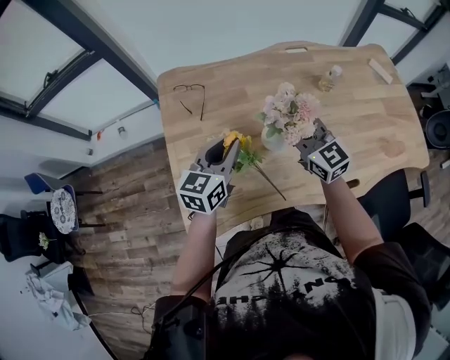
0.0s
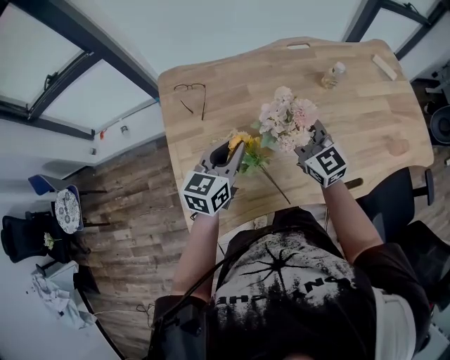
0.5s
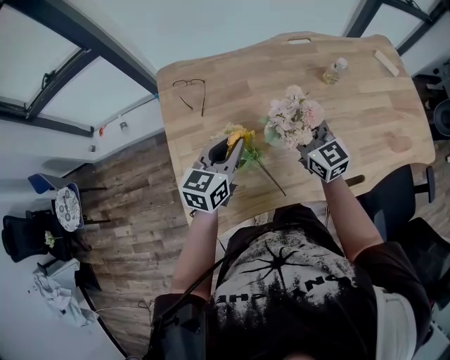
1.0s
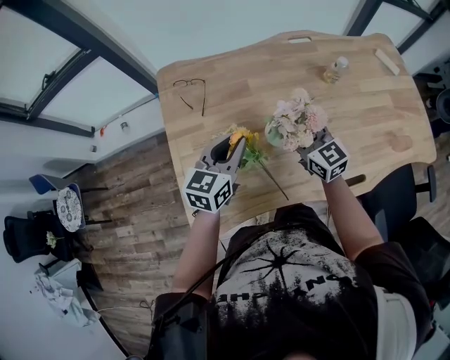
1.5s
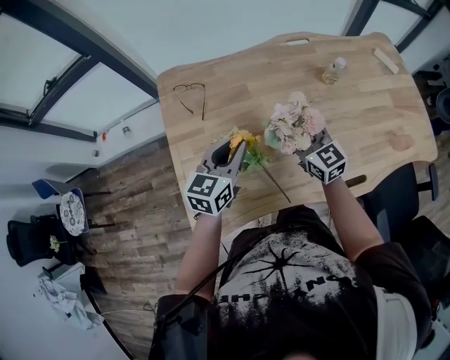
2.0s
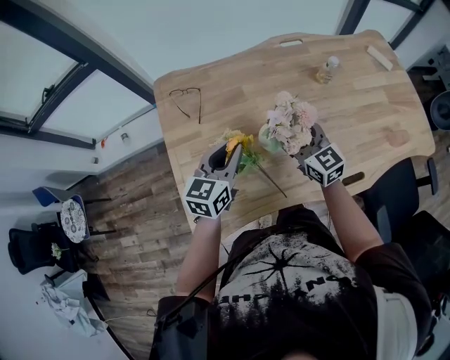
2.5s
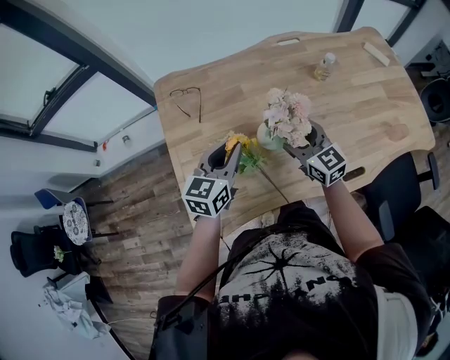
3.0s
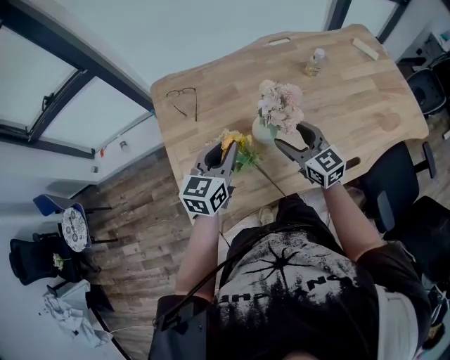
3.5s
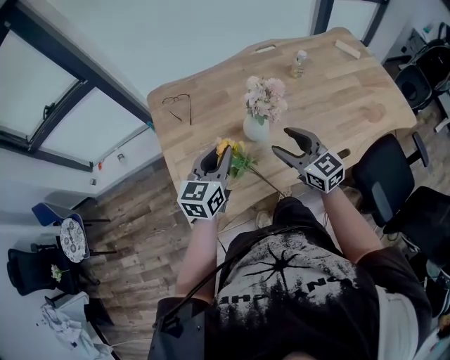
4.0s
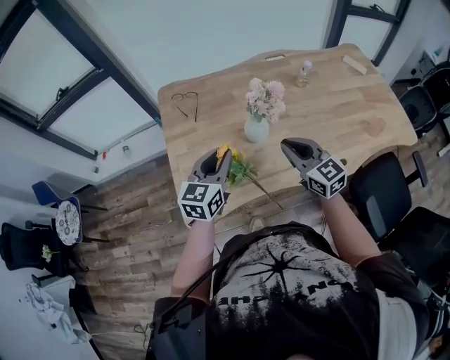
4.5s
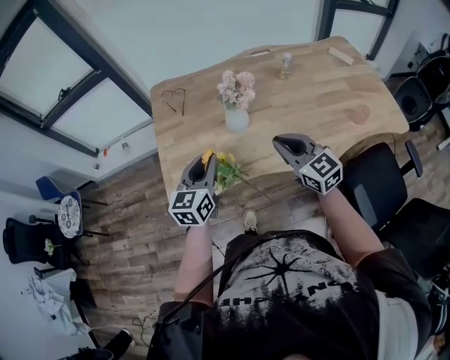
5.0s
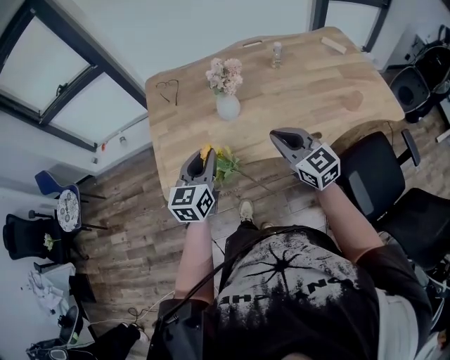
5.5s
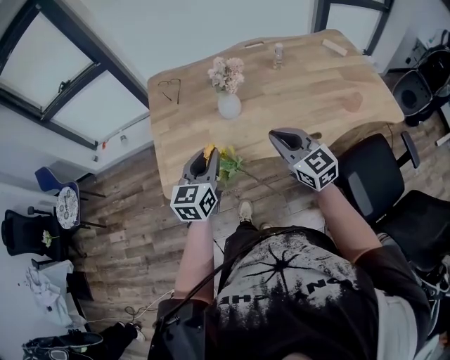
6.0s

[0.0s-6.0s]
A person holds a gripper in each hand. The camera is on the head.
0.0s to 2.0s: The right gripper is displaced downward by roughly 5 cm, and opens up.
2.0s to 4.0s: The right gripper is displaced backward by approximately 15 cm. Meanwhile the left gripper goes approximately 10 cm backward.
4.0s to 6.0s: The right gripper travels backward and to the right by some 15 cm, and closes its fingers. The left gripper shifts some 15 cm backward.

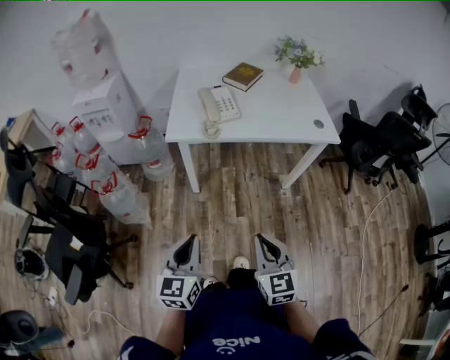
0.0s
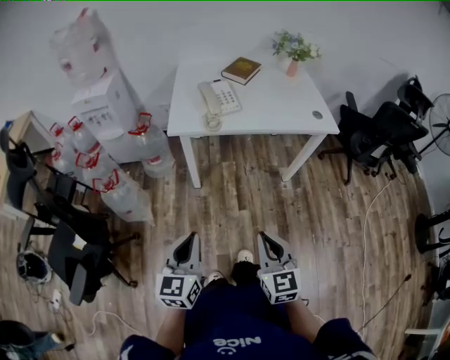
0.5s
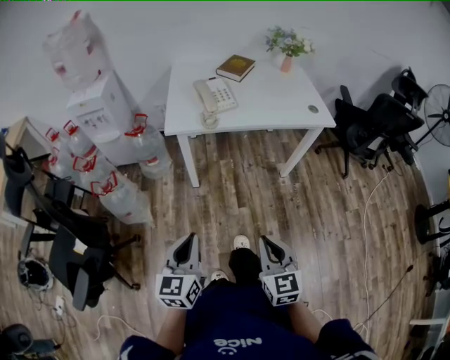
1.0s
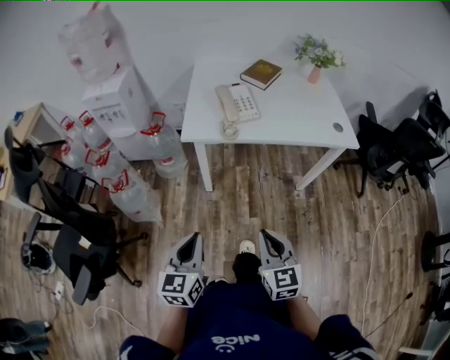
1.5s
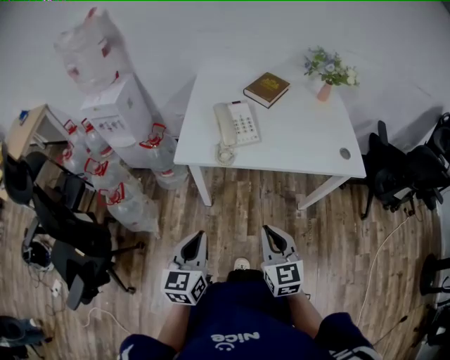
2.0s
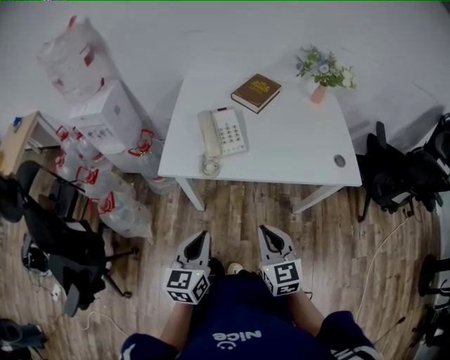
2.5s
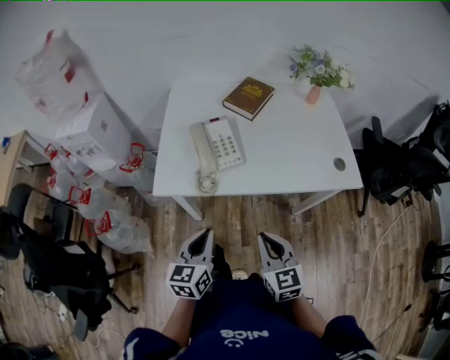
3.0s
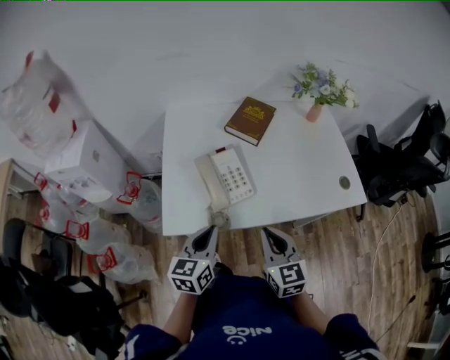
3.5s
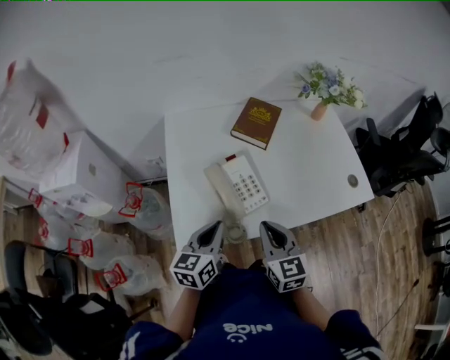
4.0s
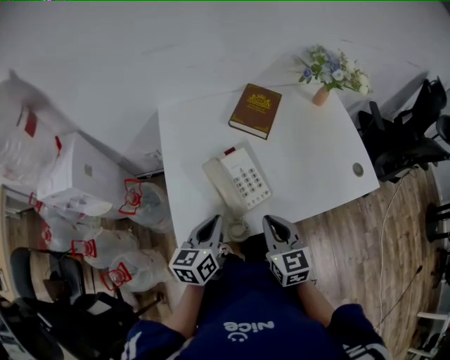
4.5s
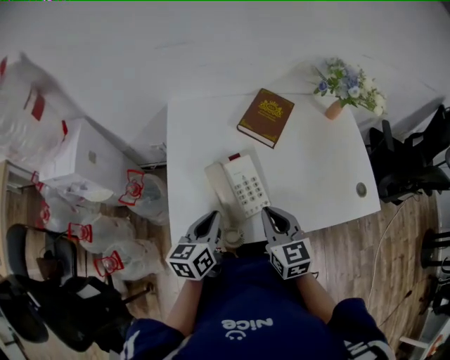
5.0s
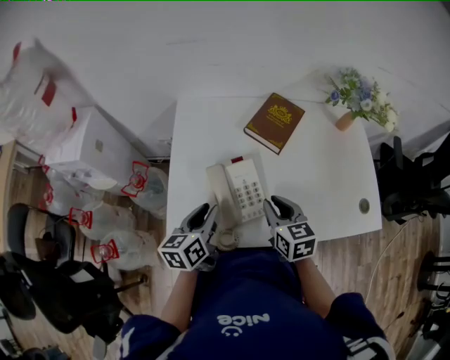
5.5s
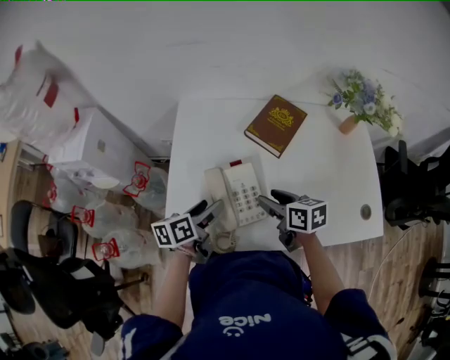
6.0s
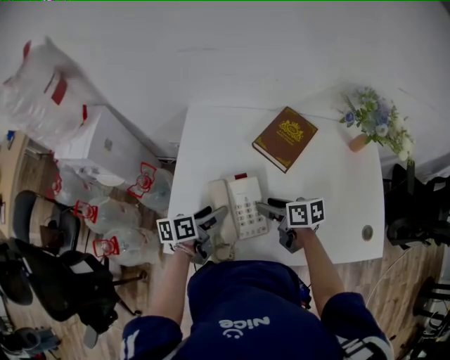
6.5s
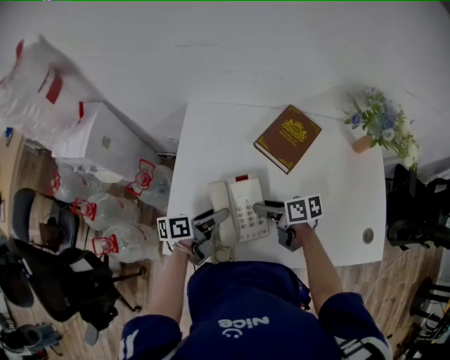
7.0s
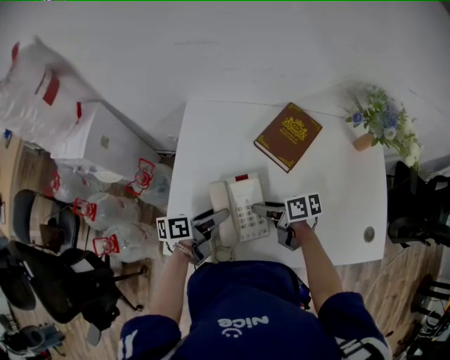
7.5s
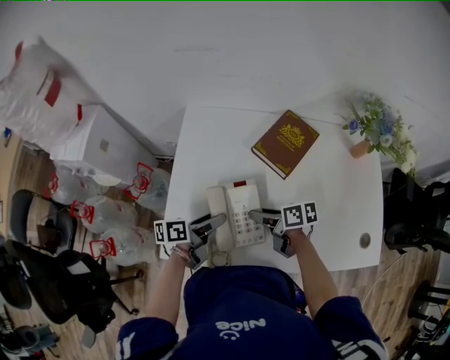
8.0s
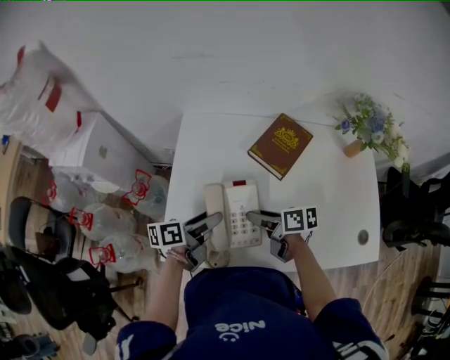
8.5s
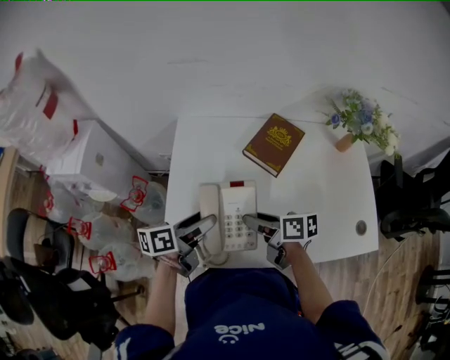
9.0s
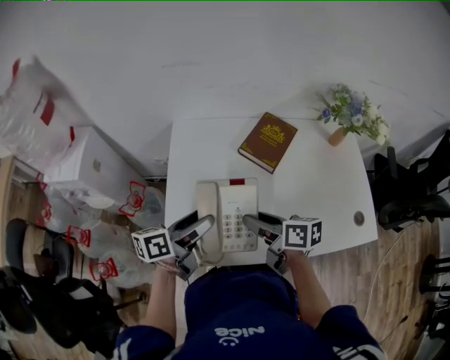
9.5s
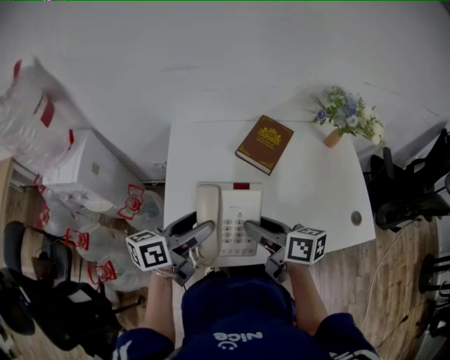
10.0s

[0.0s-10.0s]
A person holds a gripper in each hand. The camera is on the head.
0.0s to 2.0s: Both grippers move forward, approximately 20 cm.
2.0s to 4.0s: Both grippers move forward, roughly 35 cm. The left gripper turns by approximately 30 degrees.
4.0s to 6.0s: Both grippers move forward and downward, roughly 15 cm. The left gripper swivels about 30 degrees, and opens its fingers. Meanwhile the right gripper rotates about 40 degrees, and opens up.
6.0s to 8.0s: The left gripper moves roughly 5 cm; the right gripper moves downward, approximately 5 cm, and swivels about 30 degrees.
8.0s to 10.0s: The left gripper goes about 15 cm upward, and changes its angle by some 30 degrees, while the right gripper goes some 15 cm upward and backward, and turns by roughly 30 degrees.

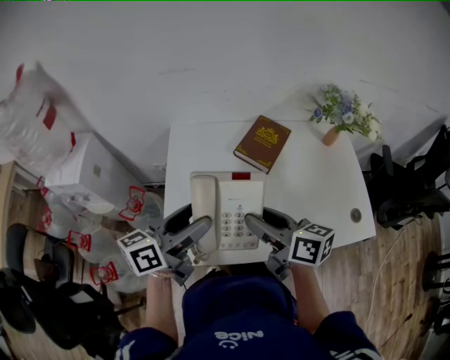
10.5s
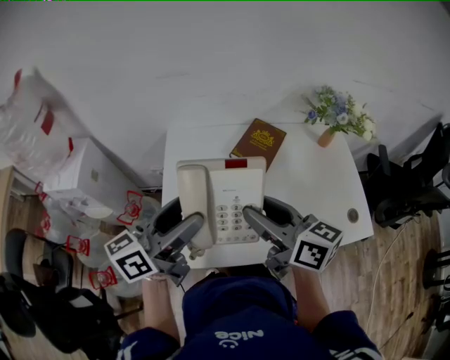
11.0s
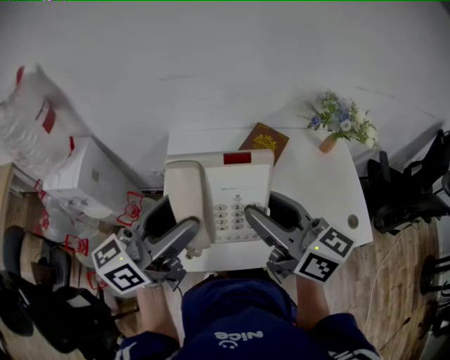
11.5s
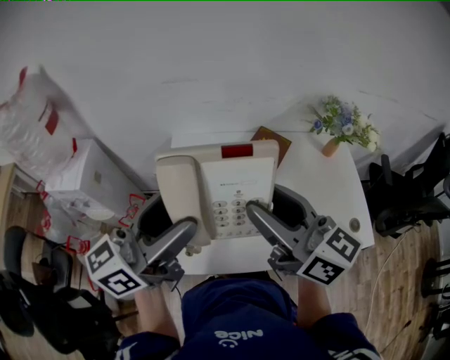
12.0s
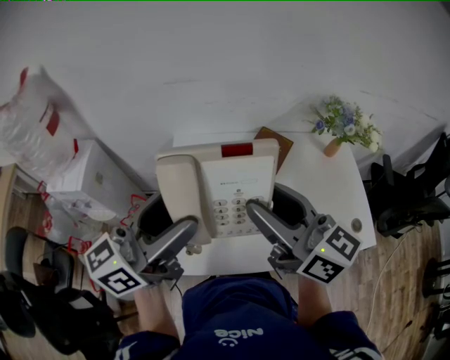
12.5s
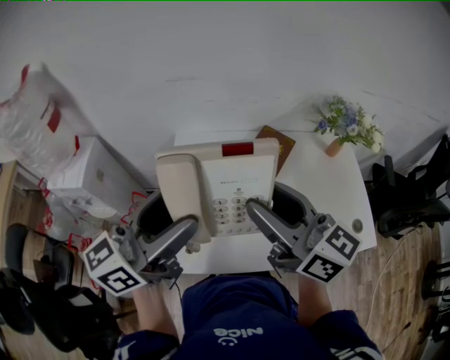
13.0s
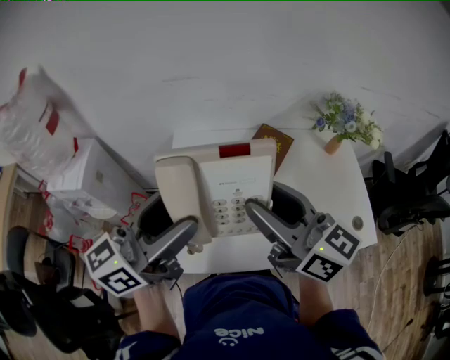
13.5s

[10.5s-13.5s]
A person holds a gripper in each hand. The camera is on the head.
10.5s to 12.0s: Both grippers move upward, about 15 cm. The left gripper rotates approximately 20 degrees. The right gripper rotates roughly 30 degrees.
12.0s to 13.5s: The two grippers keep their place.

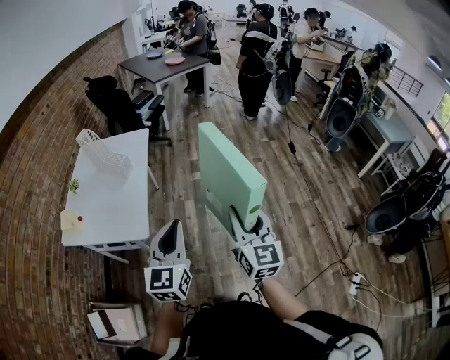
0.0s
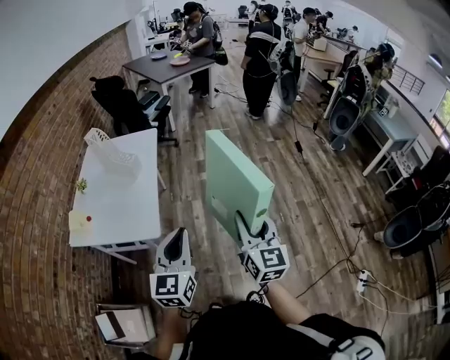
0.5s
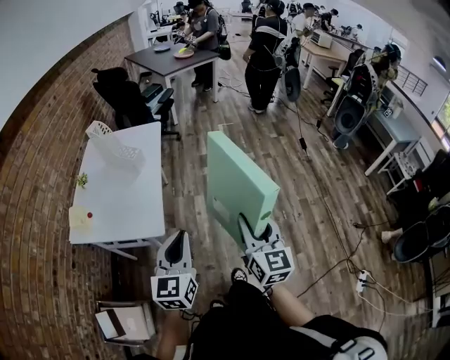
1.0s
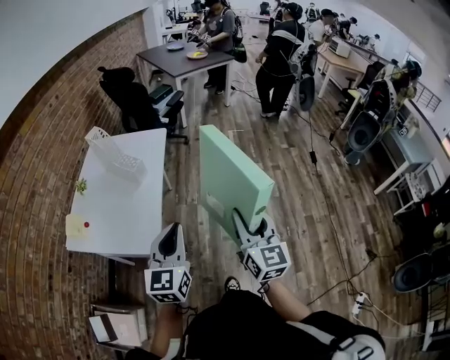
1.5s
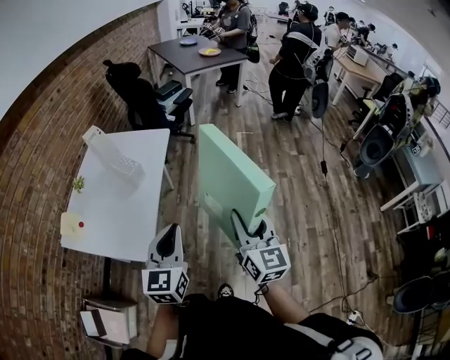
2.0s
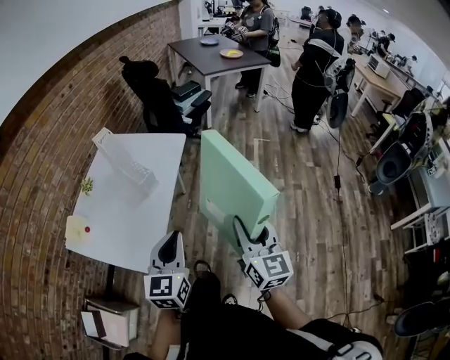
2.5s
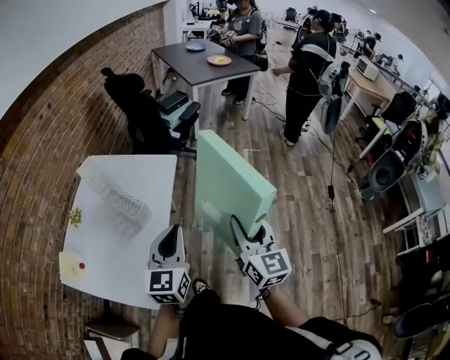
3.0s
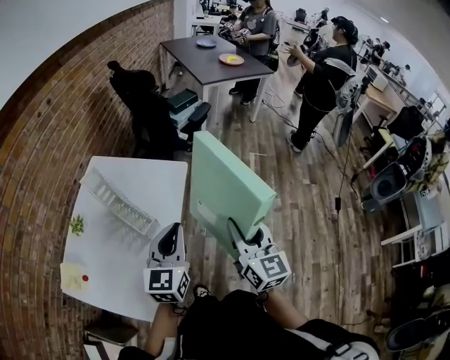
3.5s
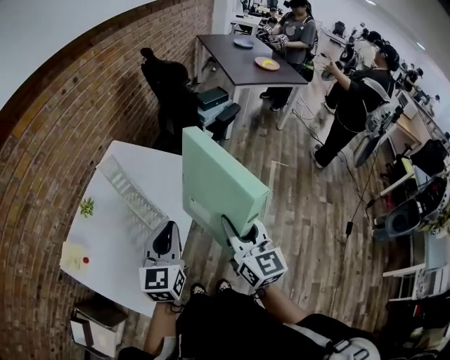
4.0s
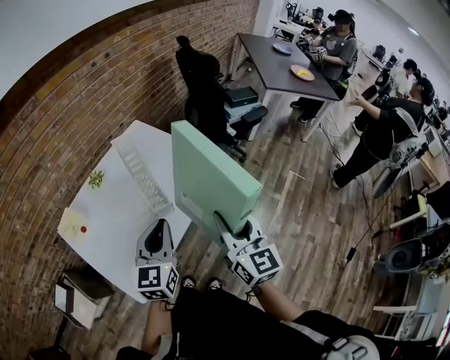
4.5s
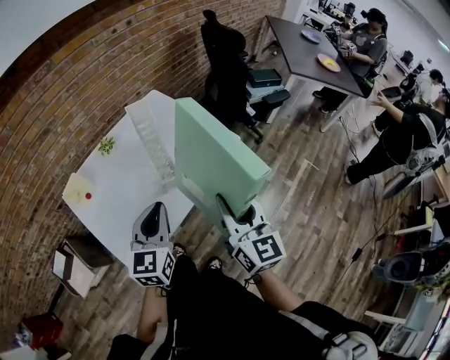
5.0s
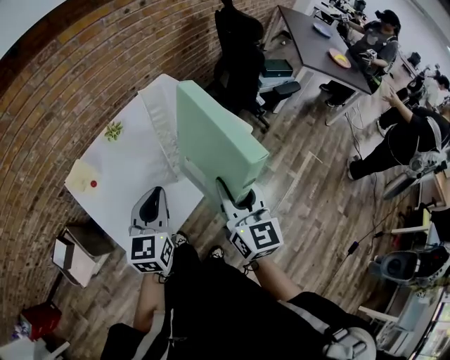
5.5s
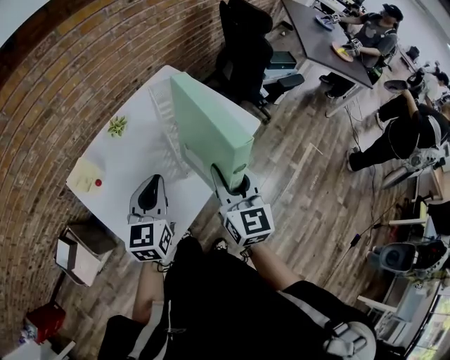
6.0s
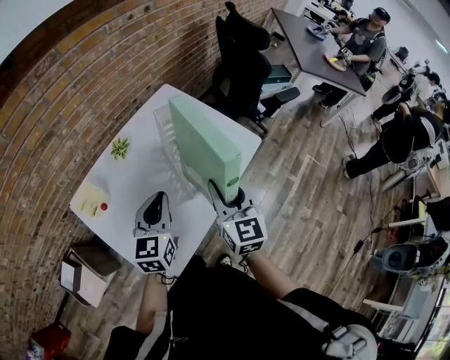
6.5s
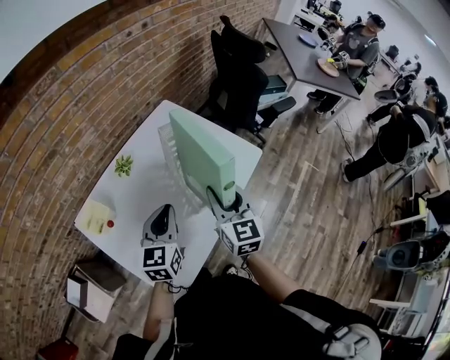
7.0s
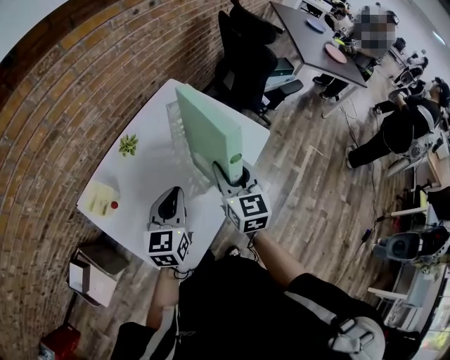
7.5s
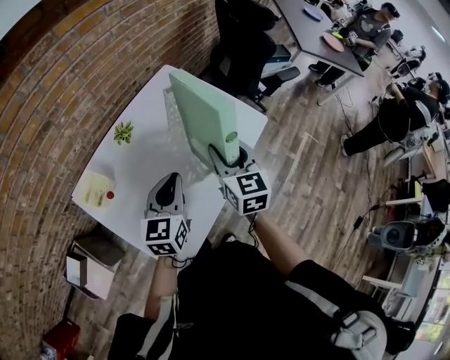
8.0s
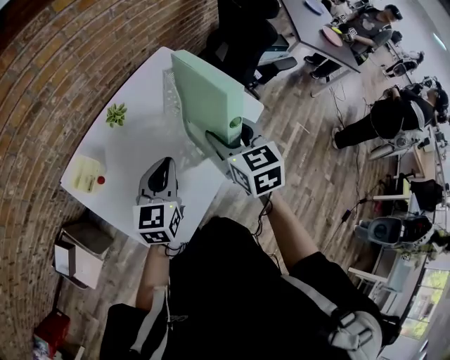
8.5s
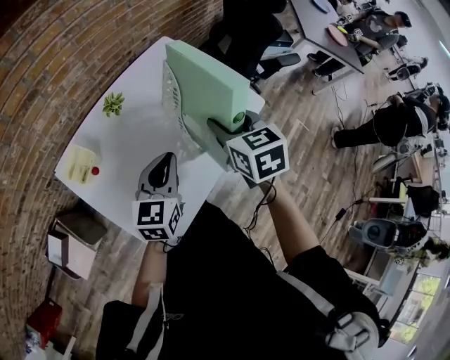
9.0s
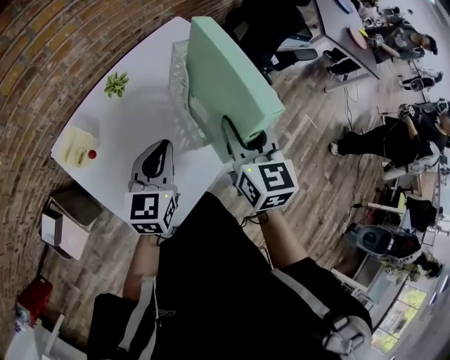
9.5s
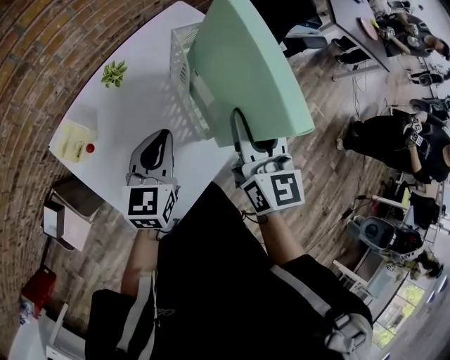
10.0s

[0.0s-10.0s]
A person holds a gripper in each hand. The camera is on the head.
0.0s to 2.0s: The two grippers go about 20 cm forward.
2.0s to 4.0s: The two grippers go about 35 cm forward. The right gripper turns by roughly 20 degrees.
4.0s to 6.0s: The left gripper heads to the left, covering approximately 15 cm, and changes its angle by about 20 degrees, while the right gripper moves to the left and forward, about 15 cm.
6.0s to 8.0s: The left gripper moves about 5 cm. Meanwhile the right gripper is displaced forward and to the left by roughly 10 cm.
